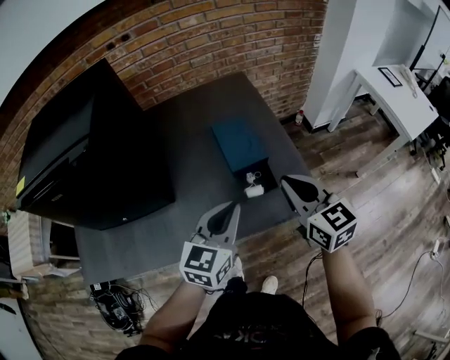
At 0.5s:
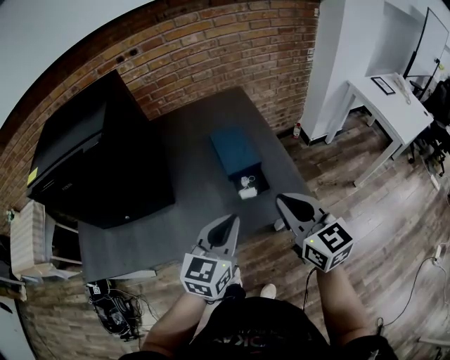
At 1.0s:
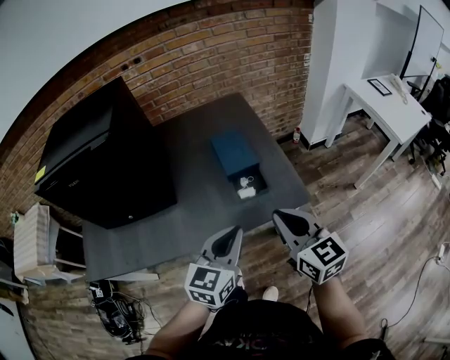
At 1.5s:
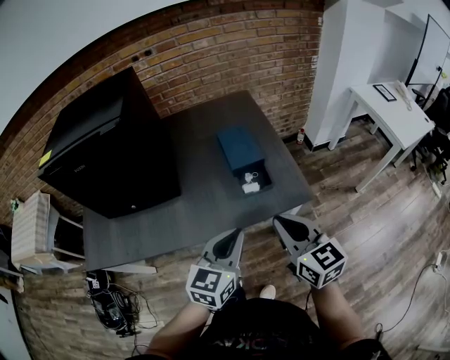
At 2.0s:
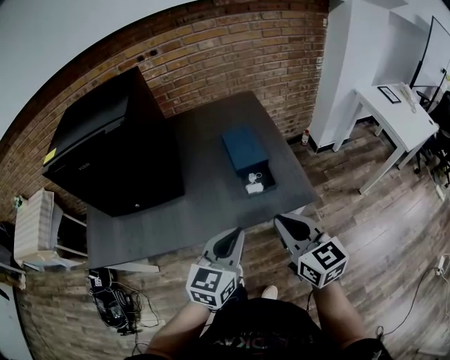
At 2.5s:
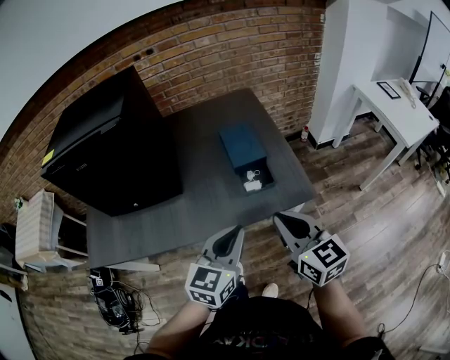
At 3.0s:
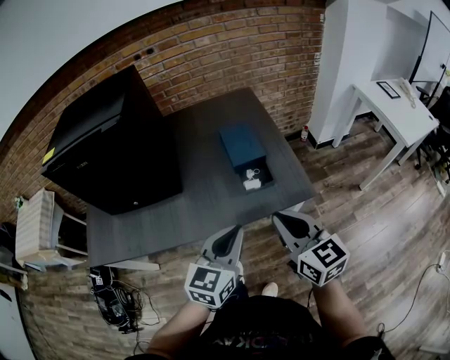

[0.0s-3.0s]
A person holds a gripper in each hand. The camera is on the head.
0.0s to 1.5s: The grippers both shift backward by roughly 15 cm.
1.5s to 3.0s: Neither gripper changes place.

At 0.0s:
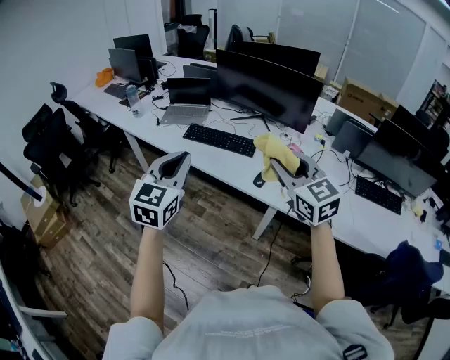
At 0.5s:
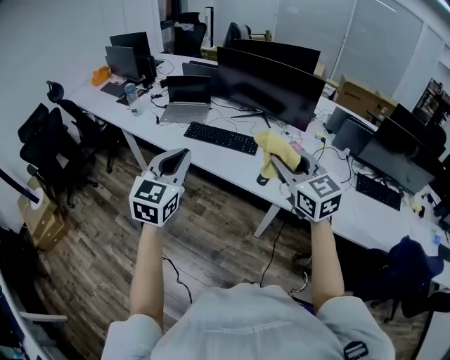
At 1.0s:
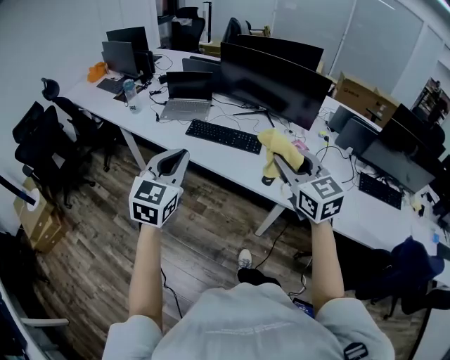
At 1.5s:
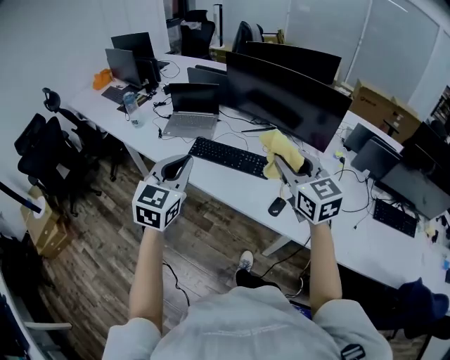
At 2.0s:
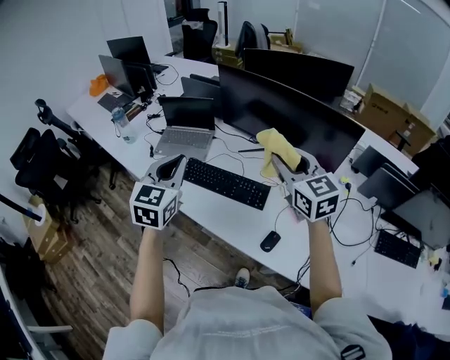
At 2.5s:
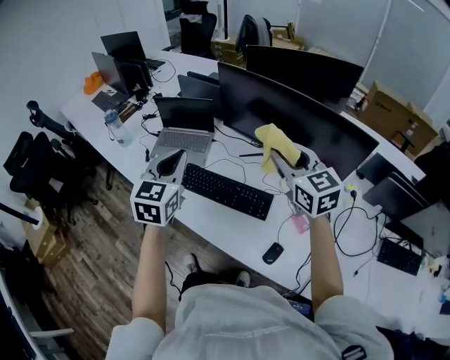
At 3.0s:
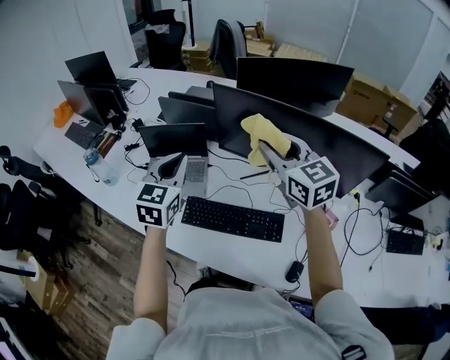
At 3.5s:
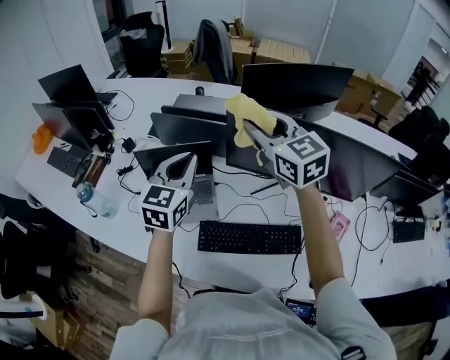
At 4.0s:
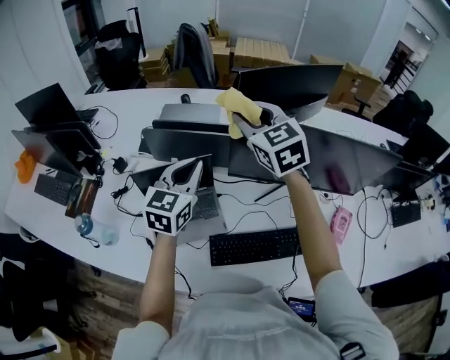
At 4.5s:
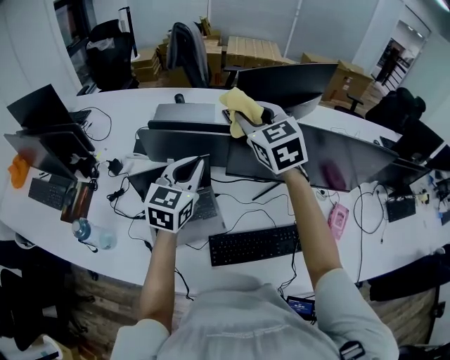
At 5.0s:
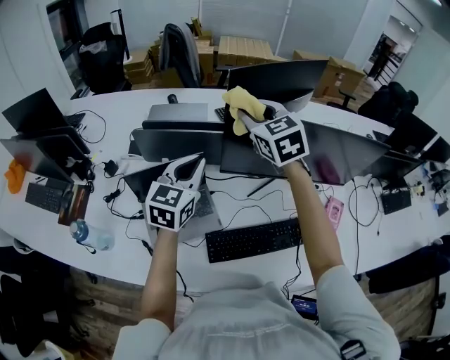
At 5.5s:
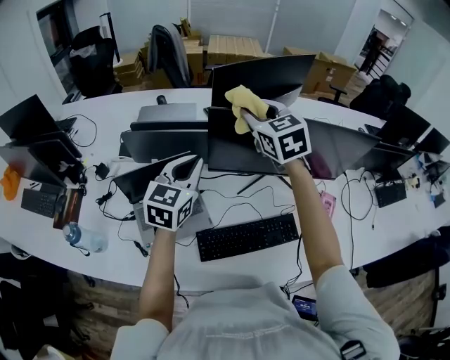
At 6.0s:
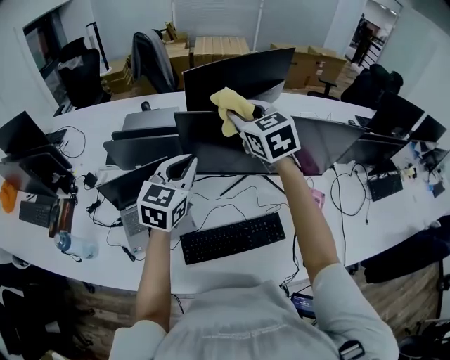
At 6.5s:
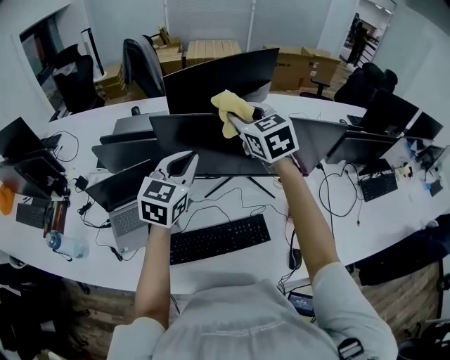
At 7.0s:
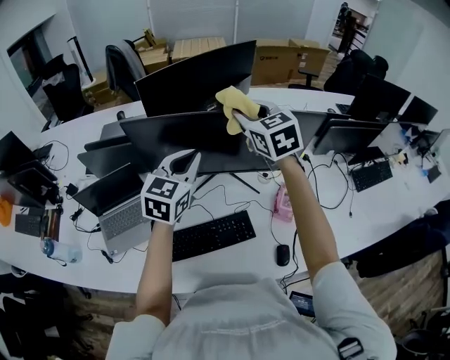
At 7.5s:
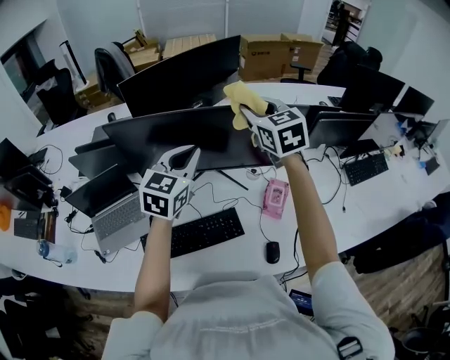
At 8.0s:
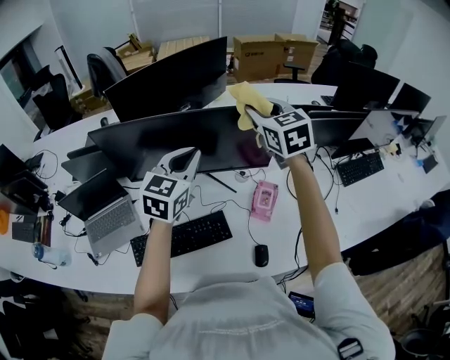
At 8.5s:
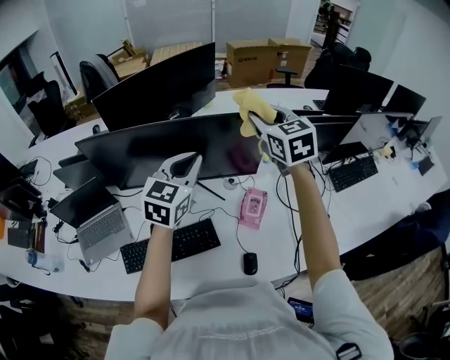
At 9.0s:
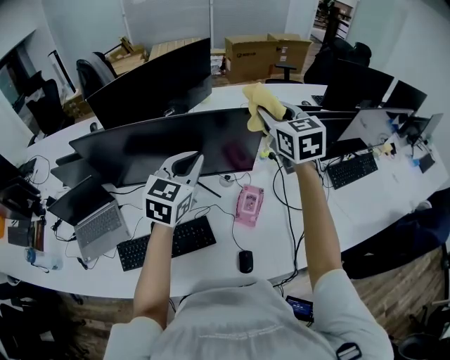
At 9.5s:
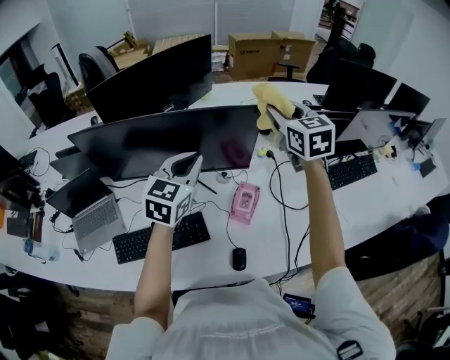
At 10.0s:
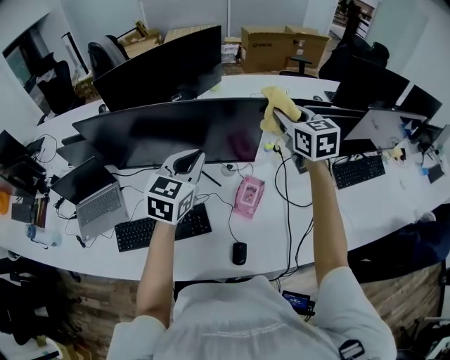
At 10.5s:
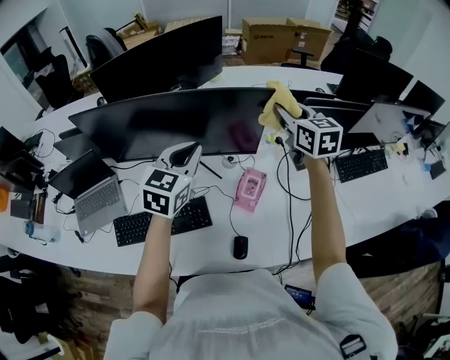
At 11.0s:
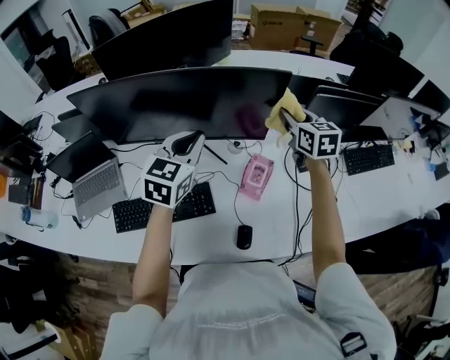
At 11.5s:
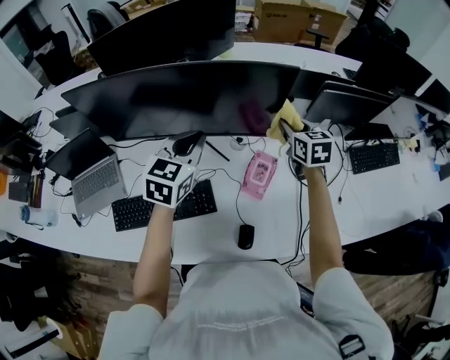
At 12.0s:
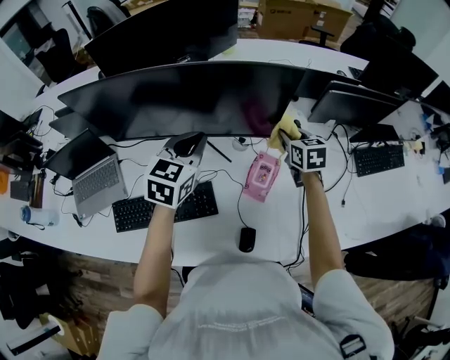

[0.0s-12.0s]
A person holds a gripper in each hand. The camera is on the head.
0.0s to 2.0s: The two grippers go some 35 cm forward.
2.0s to 4.0s: The pair of grippers is taken roughly 40 cm. The left gripper rotates some 30 degrees. Meanwhile the right gripper turns by some 30 degrees.
4.0s to 6.0s: The two grippers go roughly 15 cm to the right.
6.0s to 8.0s: The grippers both shift to the right by about 30 cm.
8.0s to 10.0s: The left gripper travels to the right by about 10 cm, while the right gripper shifts approximately 15 cm to the right.
10.0s to 12.0s: The left gripper heads downward, covering about 10 cm. The right gripper goes roughly 25 cm downward.

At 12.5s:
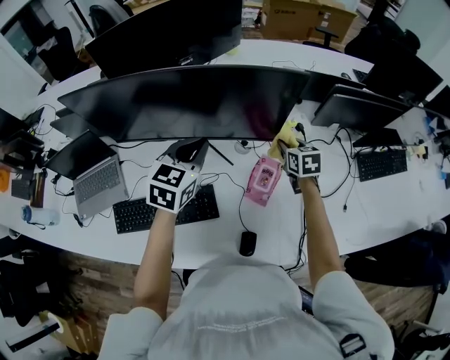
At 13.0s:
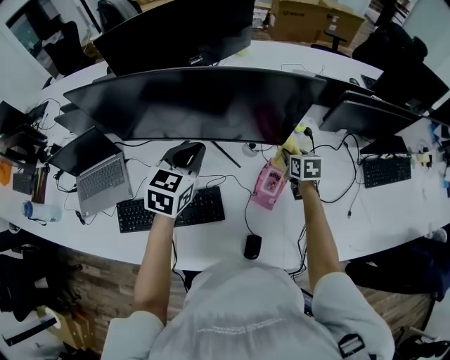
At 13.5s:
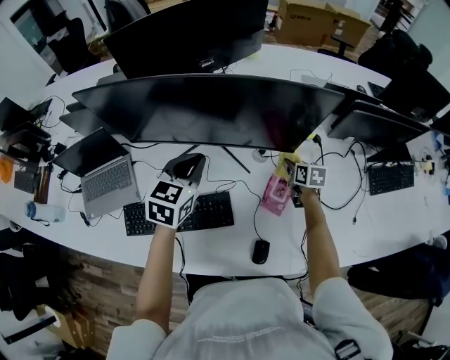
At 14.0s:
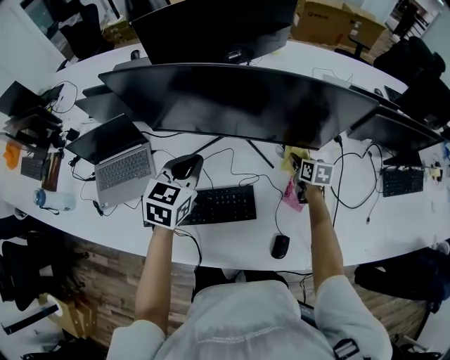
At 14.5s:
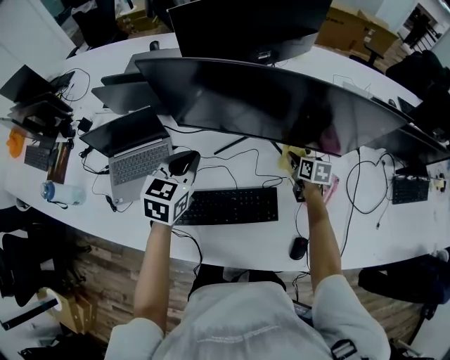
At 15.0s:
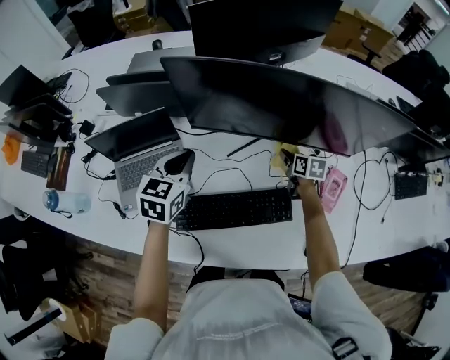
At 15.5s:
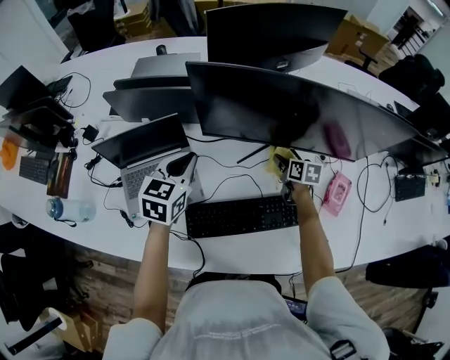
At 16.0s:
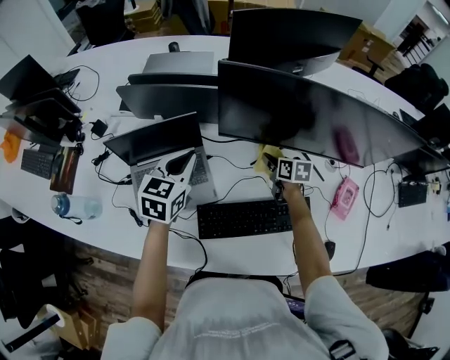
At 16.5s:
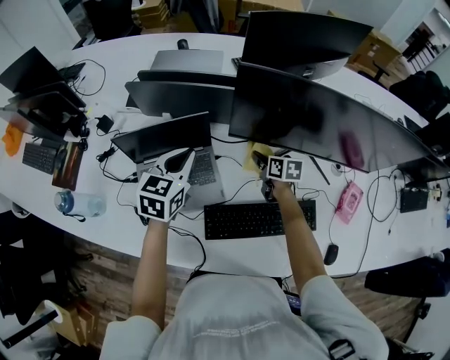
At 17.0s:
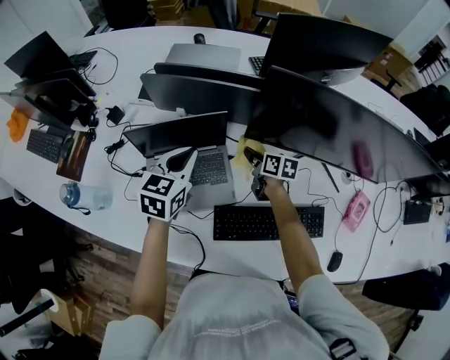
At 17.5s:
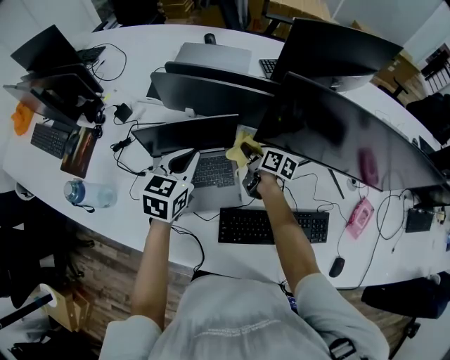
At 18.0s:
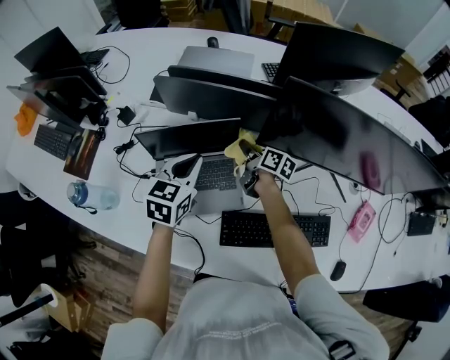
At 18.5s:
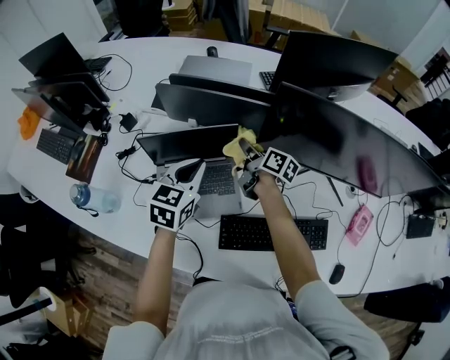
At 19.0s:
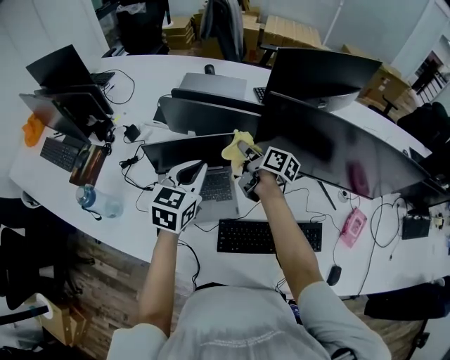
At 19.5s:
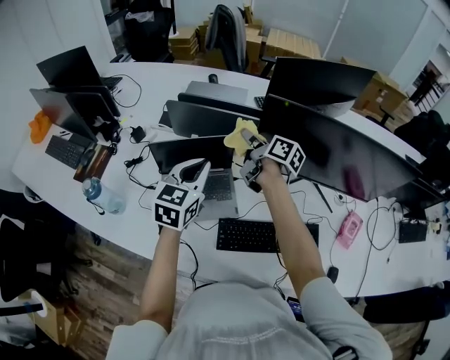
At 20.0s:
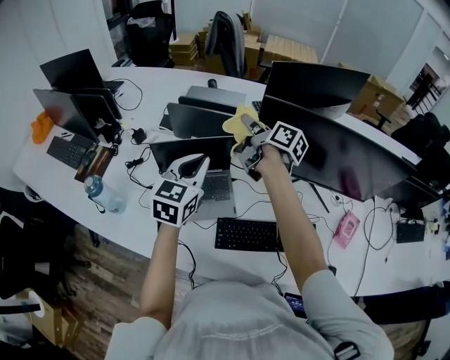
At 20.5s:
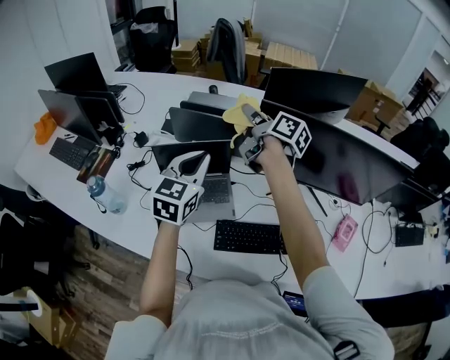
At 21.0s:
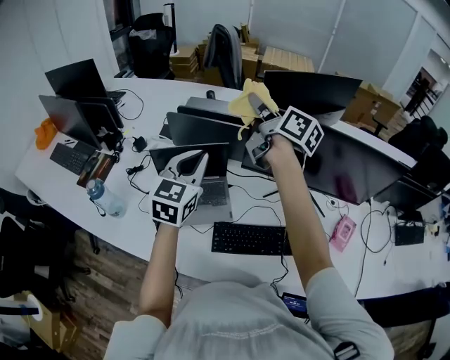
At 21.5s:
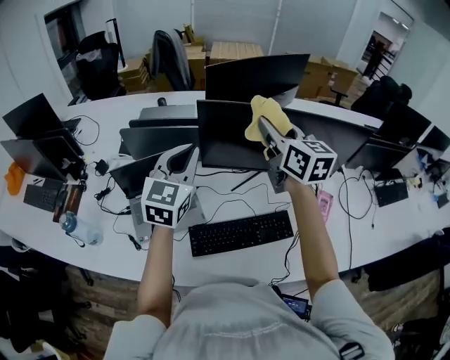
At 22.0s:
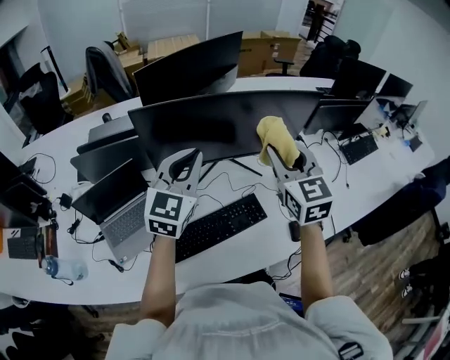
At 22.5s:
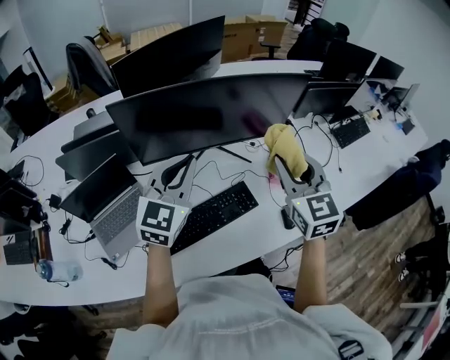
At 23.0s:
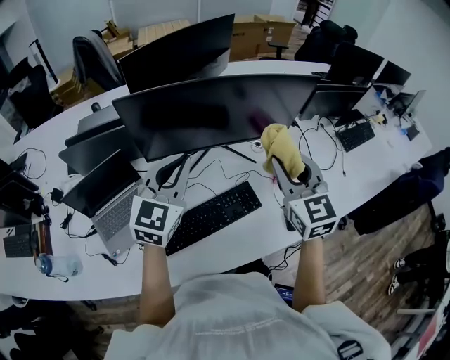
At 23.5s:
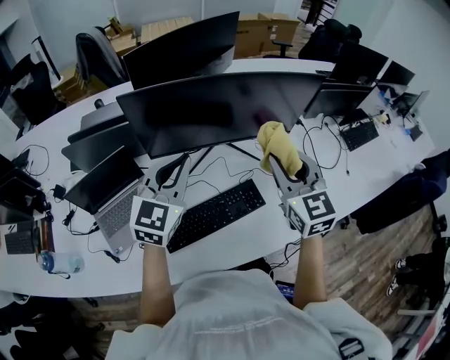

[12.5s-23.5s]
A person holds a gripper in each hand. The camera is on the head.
12.5s to 14.5s: The right gripper goes about 20 cm to the left and downward. The left gripper heads to the left, covering some 25 cm.
14.5s to 16.0s: The grippers both shift to the left by some 20 cm.
16.0s to 18.0s: The left gripper is displaced to the left by some 10 cm. Meanwhile the right gripper heads to the left, covering approximately 20 cm, and swivels some 30 degrees.
18.0s to 20.0s: The left gripper moves upward and backward, roughly 15 cm. Meanwhile the right gripper moves upward, some 25 cm.
20.0s to 21.5s: The left gripper is displaced to the right and upward by roughly 15 cm. The right gripper is displaced to the right, upward and backward by approximately 25 cm, and twists approximately 50 degrees counterclockwise, seen from behind.
21.5s to 23.5s: The right gripper shifts by some 25 cm, and rotates some 30 degrees. Meanwhile the left gripper moves some 15 cm, and turns by some 20 degrees.

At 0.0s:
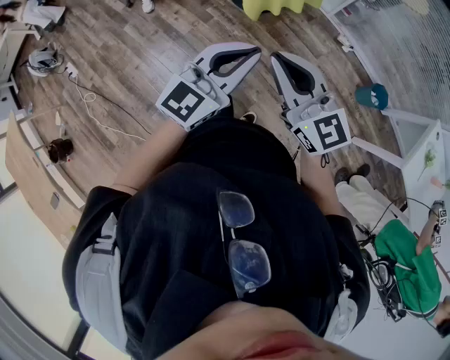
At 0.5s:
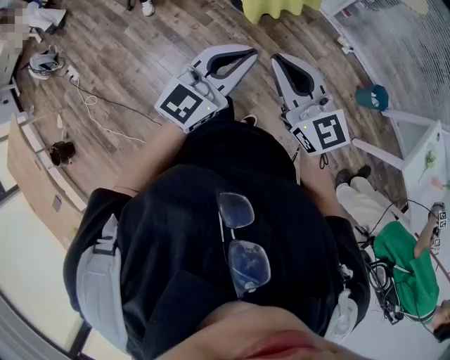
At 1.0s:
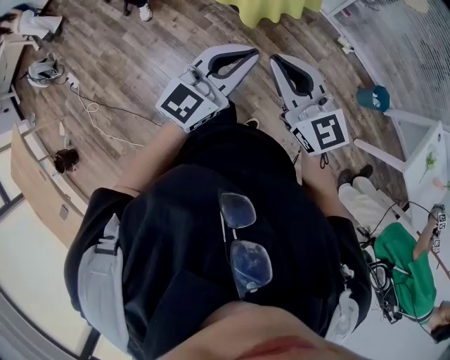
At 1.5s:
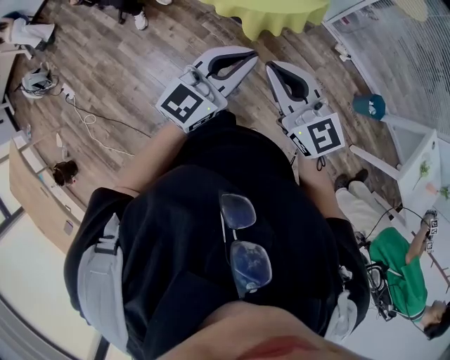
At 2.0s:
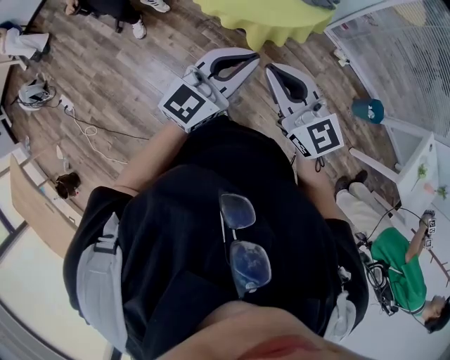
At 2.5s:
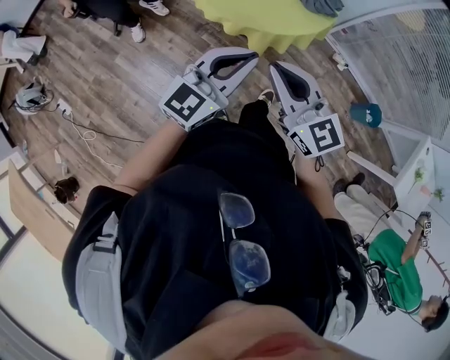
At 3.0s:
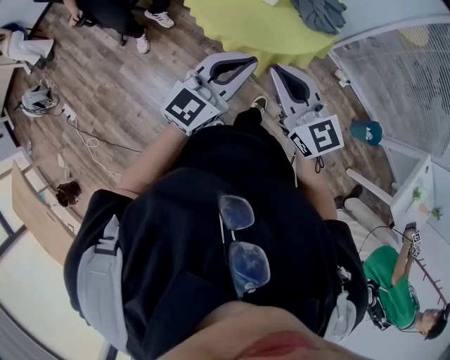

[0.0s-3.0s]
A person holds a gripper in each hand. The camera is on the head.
0.0s to 1.5s: The grippers both shift forward by some 15 cm.
1.5s to 3.0s: The left gripper moves forward and to the left, about 20 cm, while the right gripper is displaced forward by approximately 15 cm.
